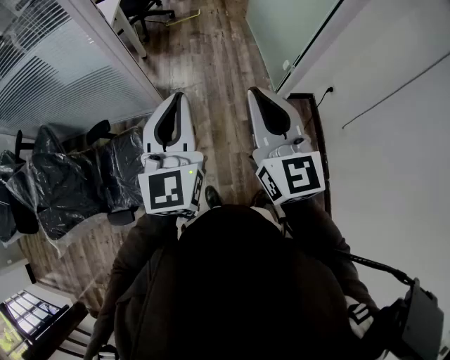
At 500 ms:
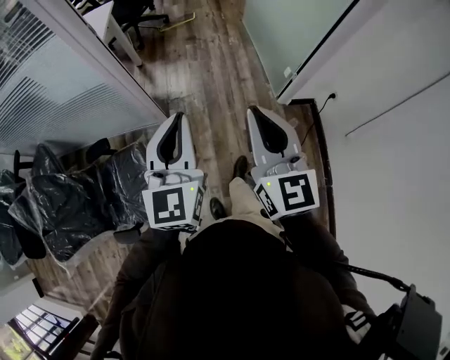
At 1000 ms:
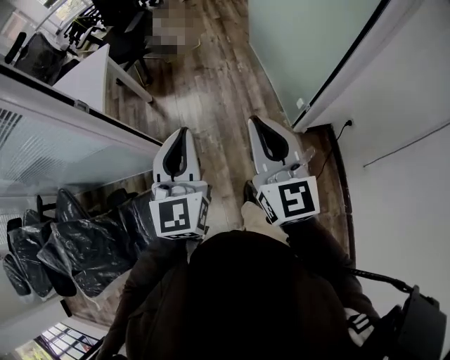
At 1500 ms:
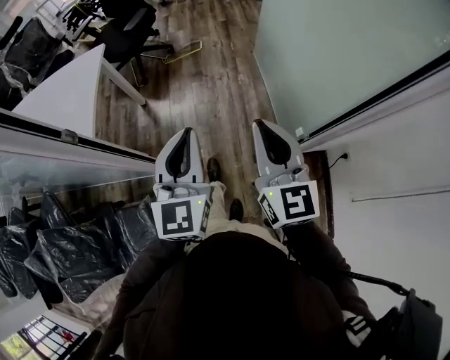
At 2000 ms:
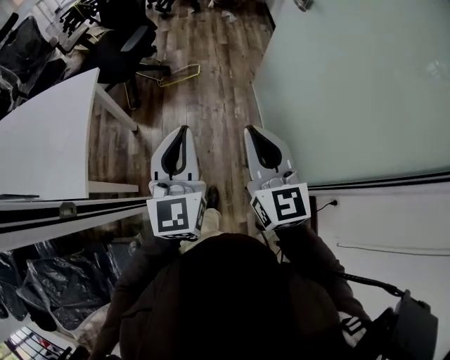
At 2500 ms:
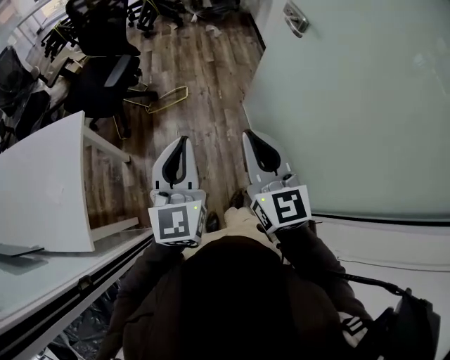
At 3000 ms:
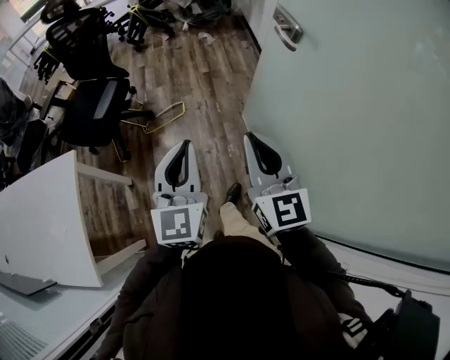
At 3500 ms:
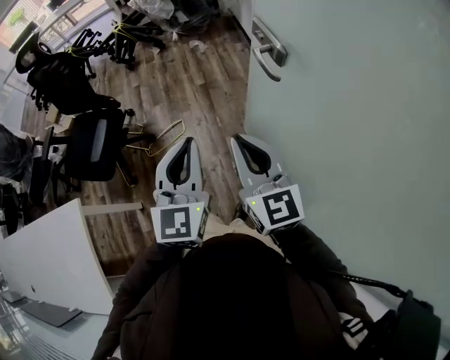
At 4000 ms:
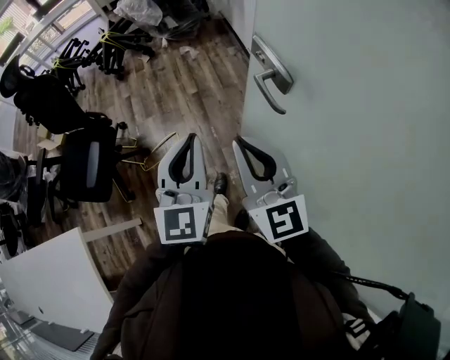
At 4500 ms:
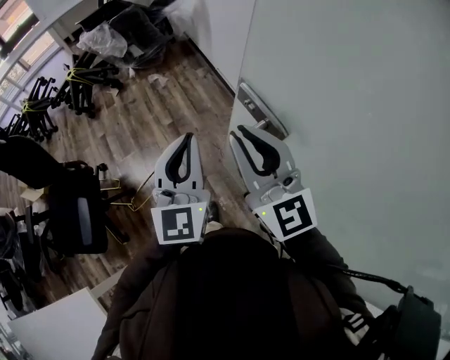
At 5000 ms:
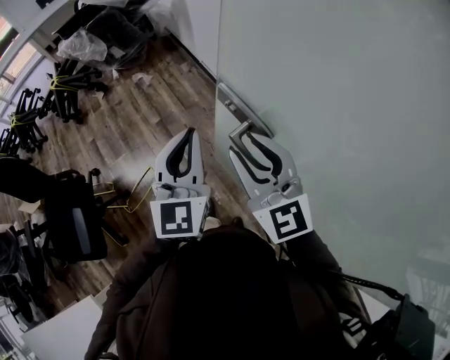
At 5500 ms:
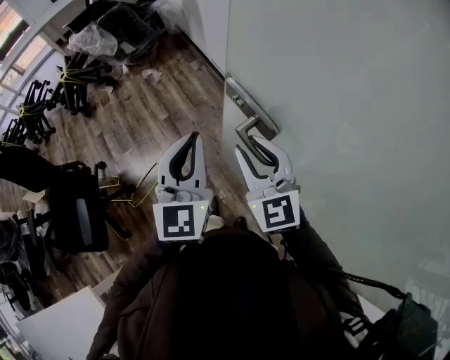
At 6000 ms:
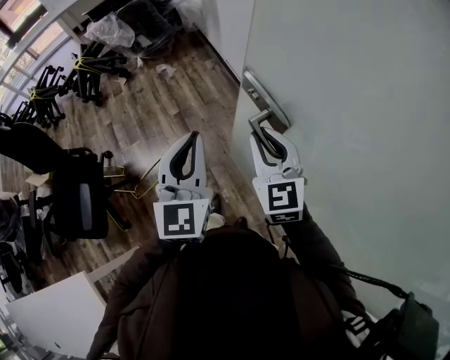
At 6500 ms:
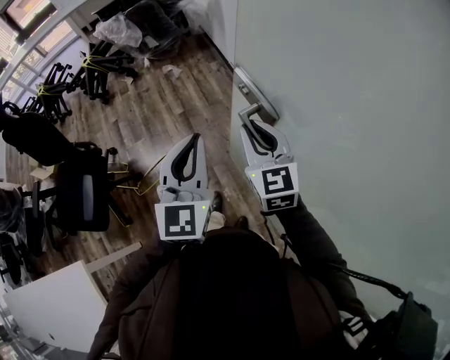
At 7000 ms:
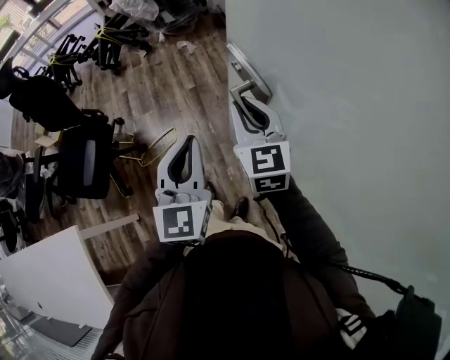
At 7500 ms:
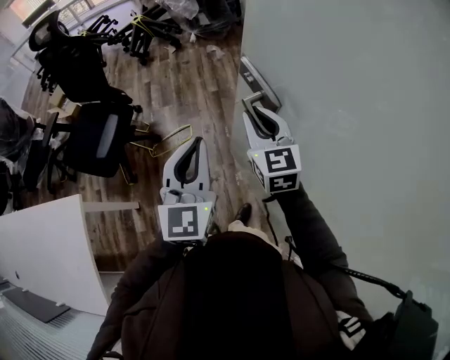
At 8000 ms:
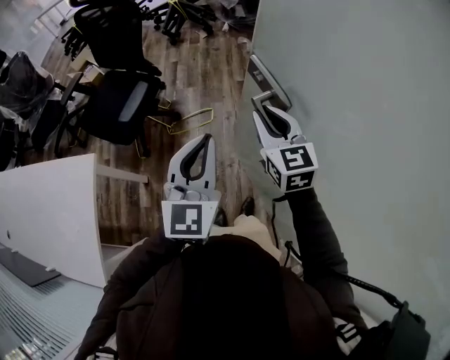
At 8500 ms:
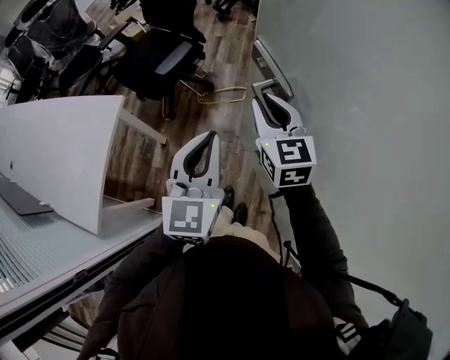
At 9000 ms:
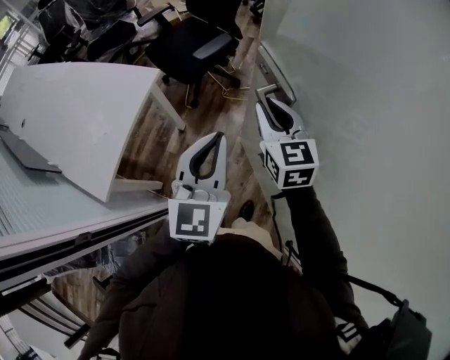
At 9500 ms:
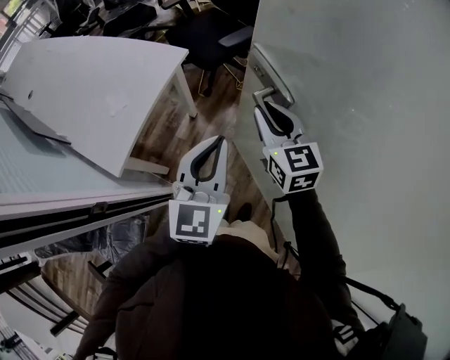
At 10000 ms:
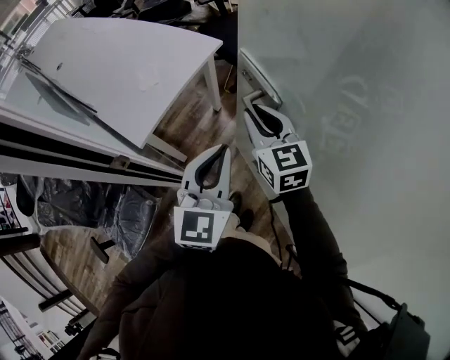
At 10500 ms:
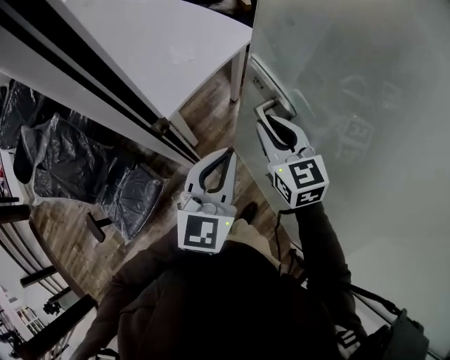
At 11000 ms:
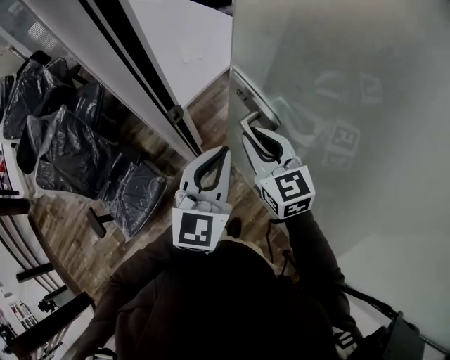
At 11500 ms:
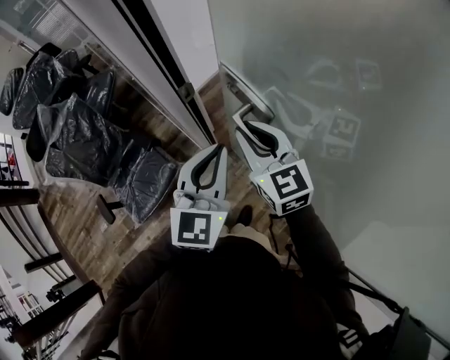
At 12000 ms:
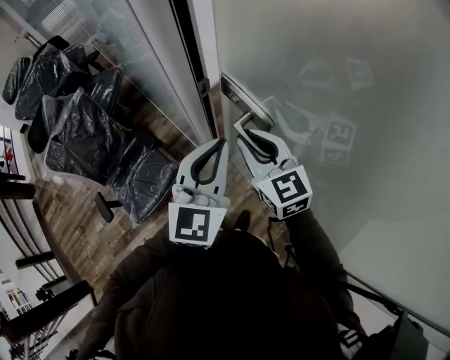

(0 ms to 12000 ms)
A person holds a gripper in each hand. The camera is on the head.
0 ms - 2000 ms: Both grippers are carried forward, approximately 60 cm.
2000 ms - 4000 ms: The two grippers travel together, forward, about 60 cm.
4000 ms - 6000 ms: The left gripper is displaced forward by roughly 15 cm, while the right gripper shifts about 20 cm forward and to the right, and rotates approximately 30 degrees.
6000 ms - 8000 ms: The right gripper moves approximately 30 cm, and turns by some 30 degrees, while the left gripper ends up about 35 cm from where it was, and swivels approximately 20 degrees.
8000 ms - 10000 ms: The pair of grippers is taken some 50 cm. The left gripper swivels about 30 degrees, while the right gripper changes its angle by about 40 degrees.
10000 ms - 12000 ms: Both grippers travel together to the left and backward, approximately 30 cm. The right gripper swivels about 20 degrees.

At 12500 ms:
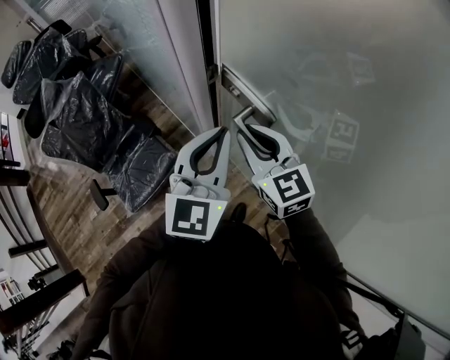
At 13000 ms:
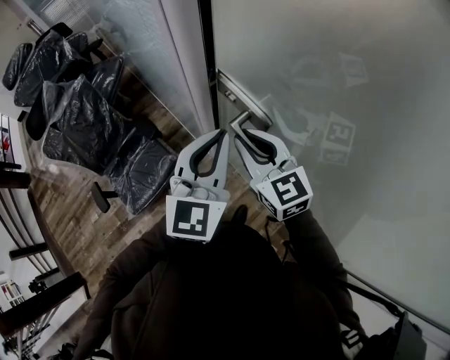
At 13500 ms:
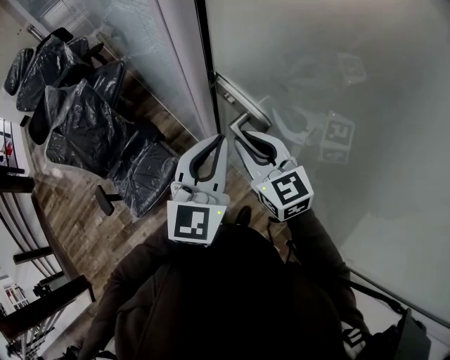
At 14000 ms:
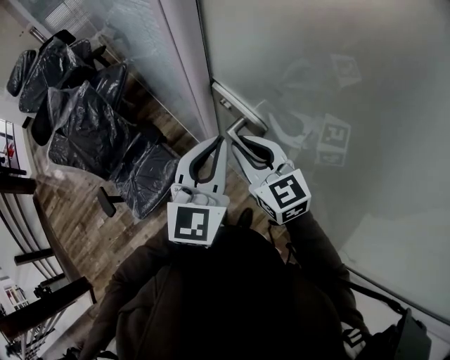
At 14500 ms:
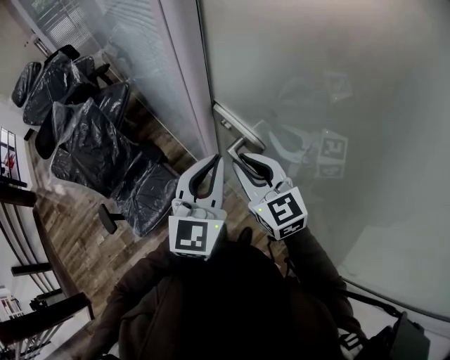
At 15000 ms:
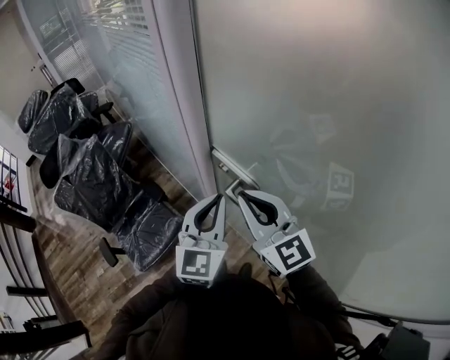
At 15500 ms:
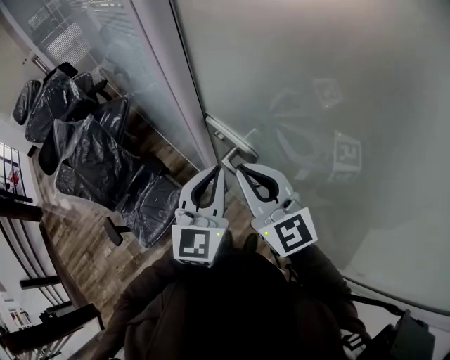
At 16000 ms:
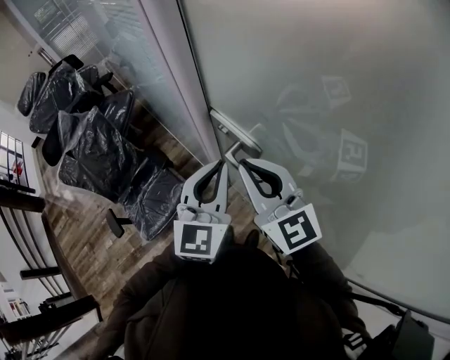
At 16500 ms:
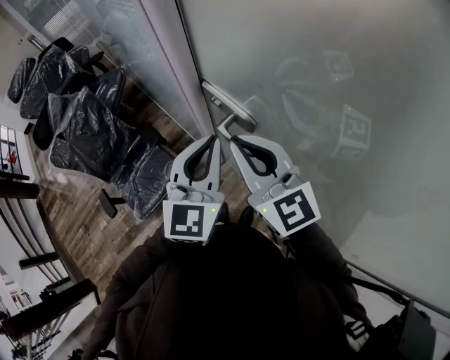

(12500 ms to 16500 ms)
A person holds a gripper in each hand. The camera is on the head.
12500 ms - 14500 ms: There are only small adjustments of the grippers.
14500 ms - 16500 ms: The right gripper is displaced upward by some 5 cm.

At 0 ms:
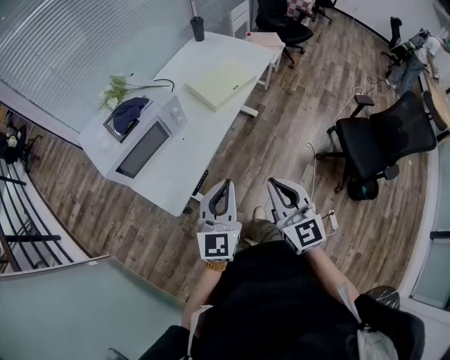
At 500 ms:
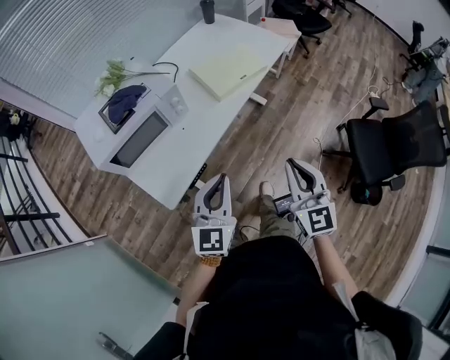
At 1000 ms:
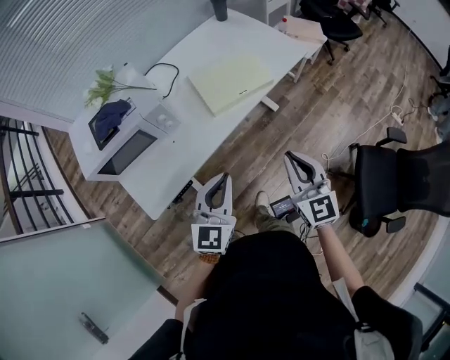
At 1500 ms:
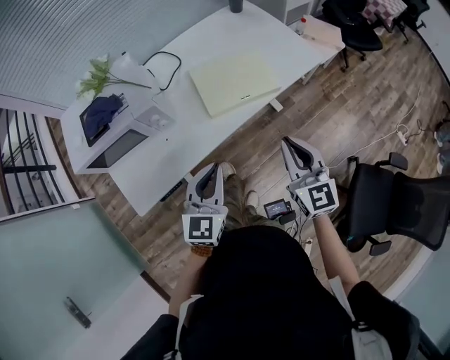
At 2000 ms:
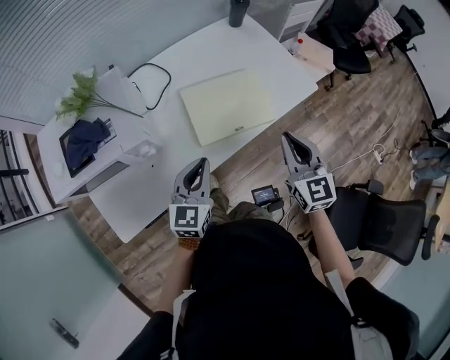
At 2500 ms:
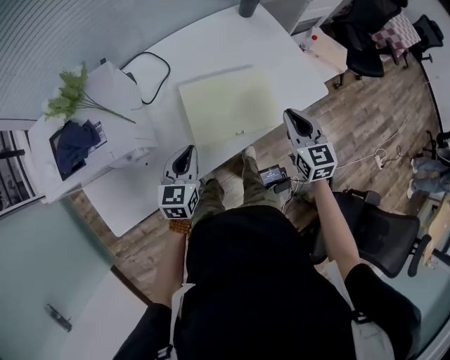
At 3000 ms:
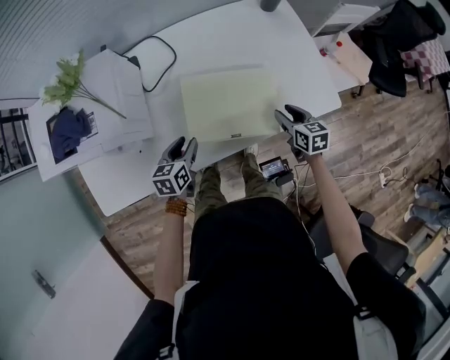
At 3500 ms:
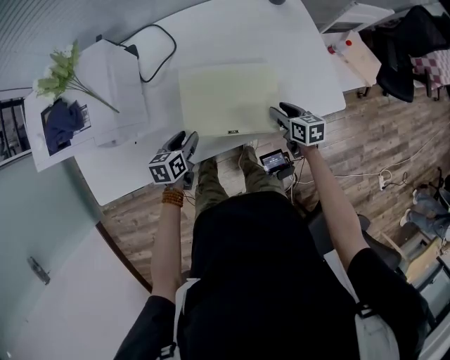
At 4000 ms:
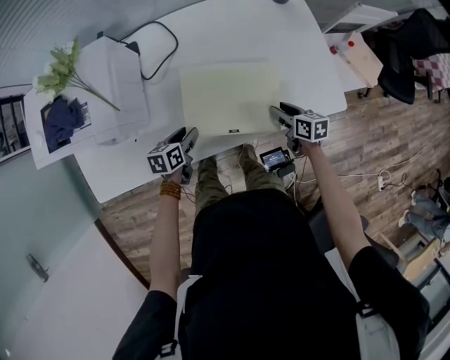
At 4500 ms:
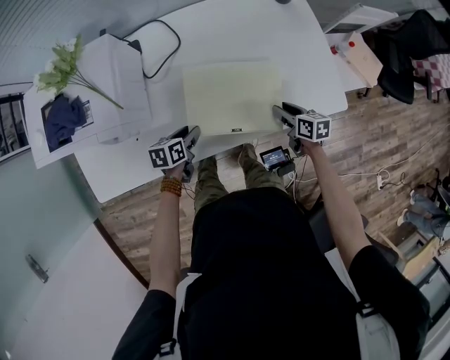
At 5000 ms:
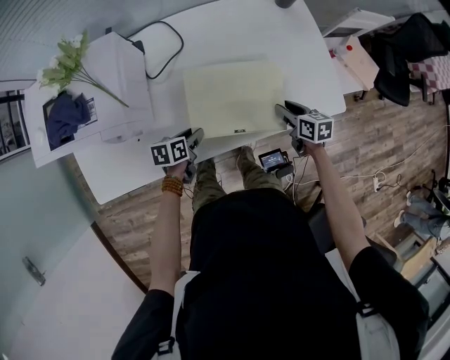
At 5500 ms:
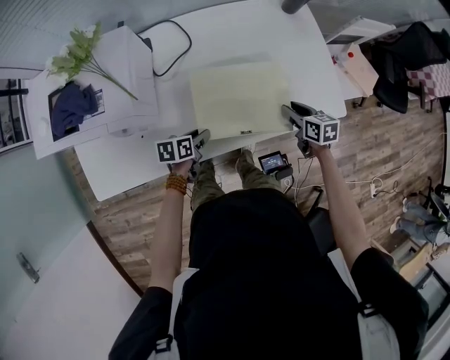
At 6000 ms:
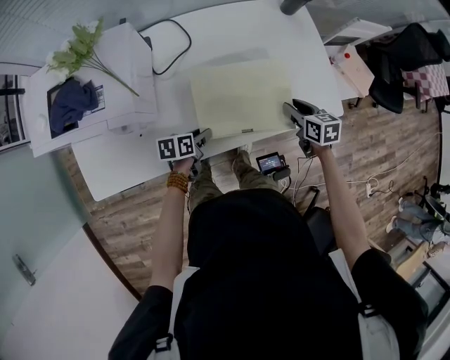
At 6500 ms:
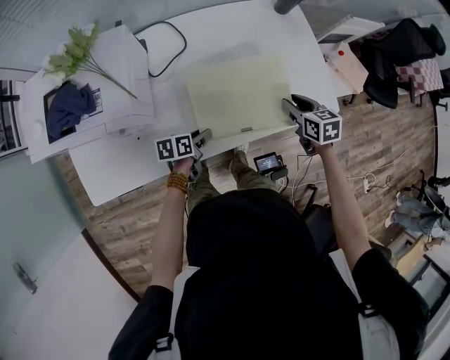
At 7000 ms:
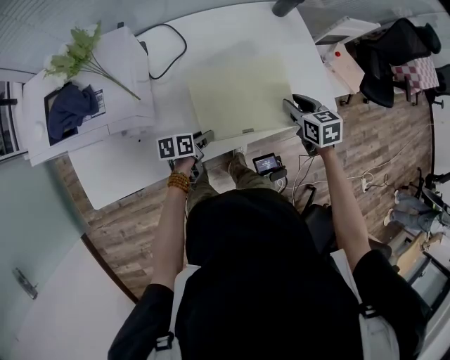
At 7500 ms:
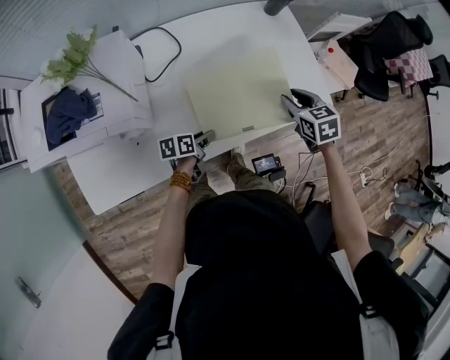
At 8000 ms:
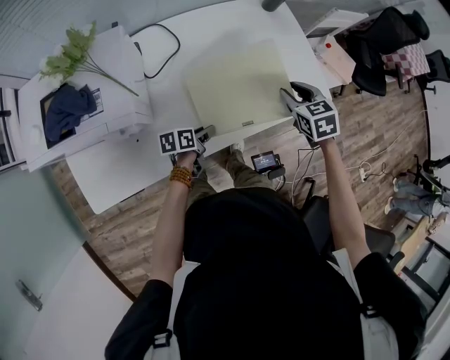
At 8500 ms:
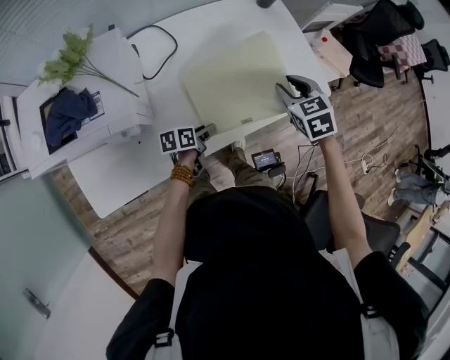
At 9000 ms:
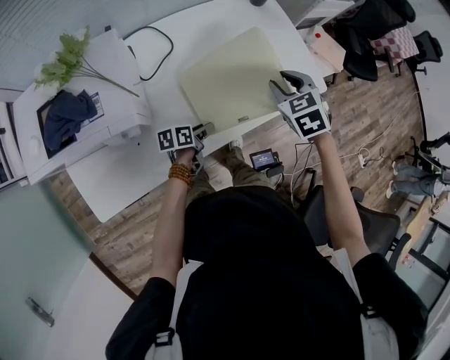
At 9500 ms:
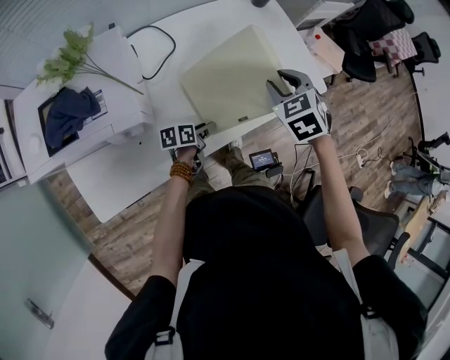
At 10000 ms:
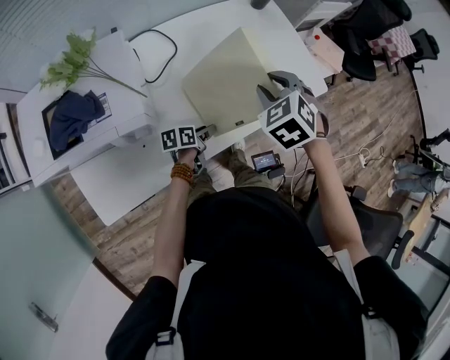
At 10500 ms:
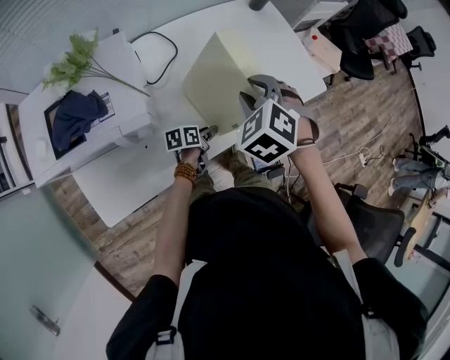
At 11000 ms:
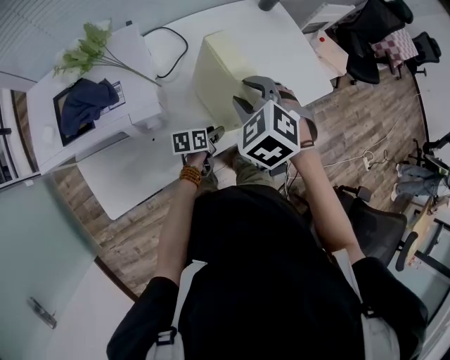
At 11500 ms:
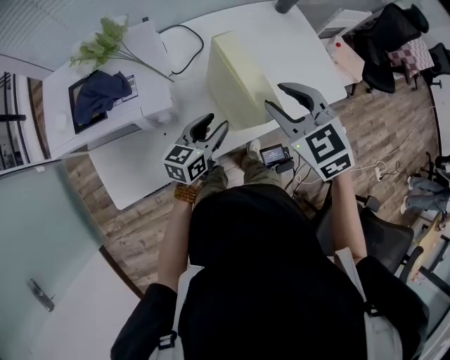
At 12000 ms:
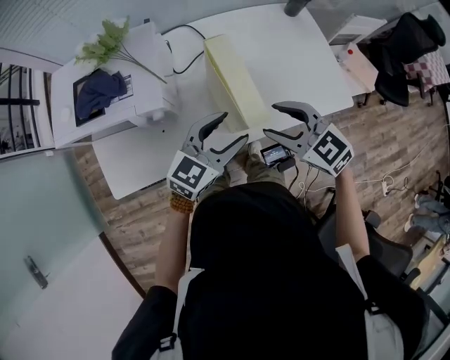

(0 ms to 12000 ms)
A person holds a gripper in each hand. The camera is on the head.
0 ms - 2000 ms: The left gripper shifts roughly 35 cm forward, and changes its angle by roughly 20 degrees, while the right gripper heads forward and to the right, covering approximately 50 cm.
2000 ms - 4000 ms: Both grippers move downward and forward, about 30 cm. The right gripper swivels roughly 60 degrees, and opens its fingers. The left gripper changes its angle by some 50 degrees, and opens.
4000 ms - 6000 ms: The right gripper travels upward by about 10 cm.
6000 ms - 8000 ms: The right gripper goes roughly 10 cm upward, and turns by about 20 degrees.
8000 ms - 10000 ms: The right gripper goes some 15 cm to the left, backward and upward, and rotates approximately 30 degrees.
10000 ms - 12000 ms: The right gripper moves roughly 10 cm, and changes its angle by about 50 degrees. The left gripper heads upward, covering about 25 cm, and rotates around the line of its fingers by some 60 degrees, clockwise from behind.
